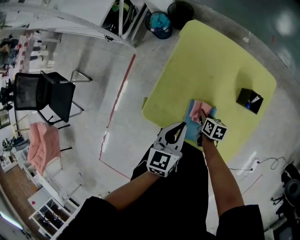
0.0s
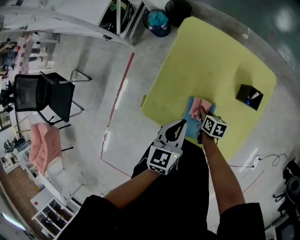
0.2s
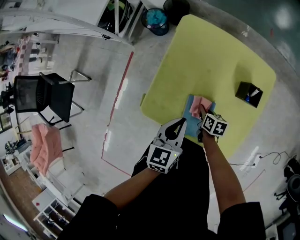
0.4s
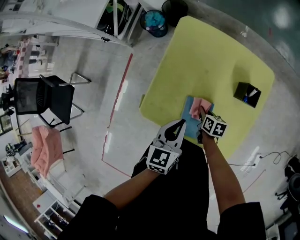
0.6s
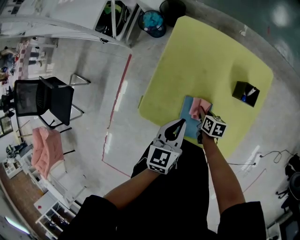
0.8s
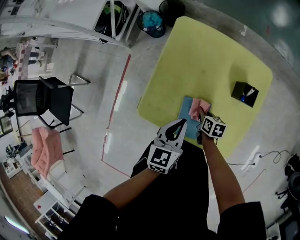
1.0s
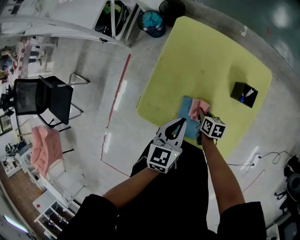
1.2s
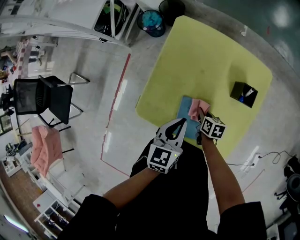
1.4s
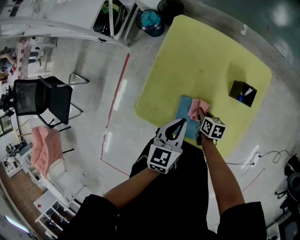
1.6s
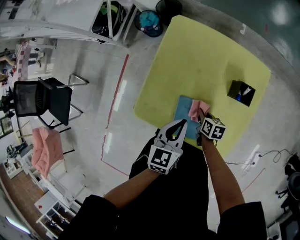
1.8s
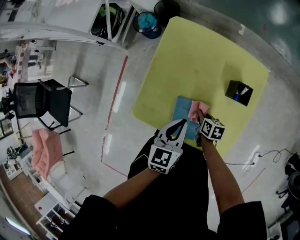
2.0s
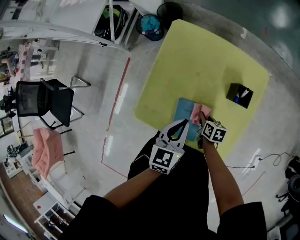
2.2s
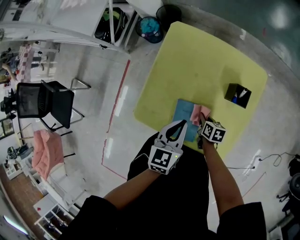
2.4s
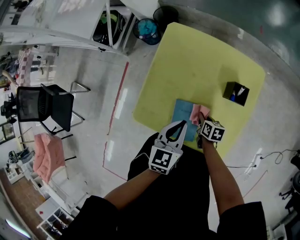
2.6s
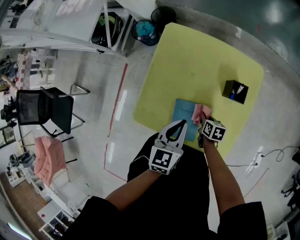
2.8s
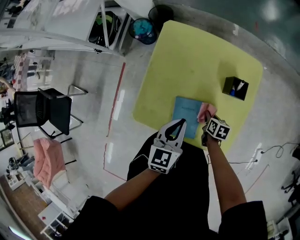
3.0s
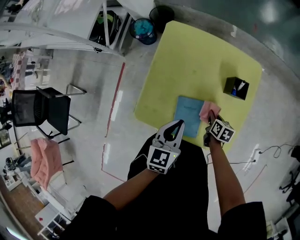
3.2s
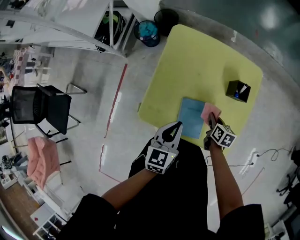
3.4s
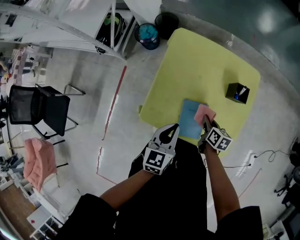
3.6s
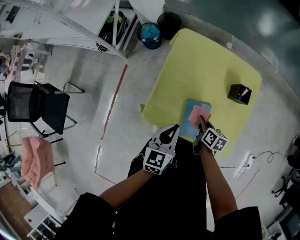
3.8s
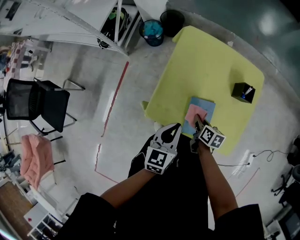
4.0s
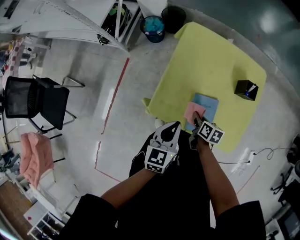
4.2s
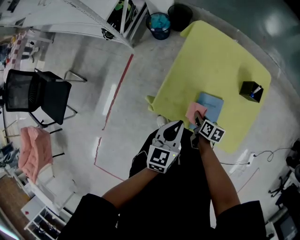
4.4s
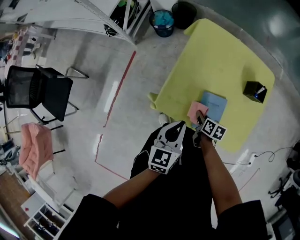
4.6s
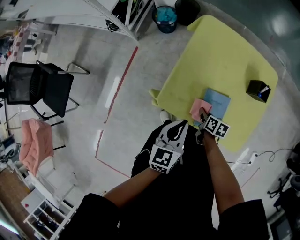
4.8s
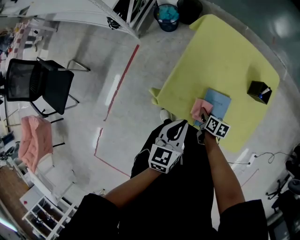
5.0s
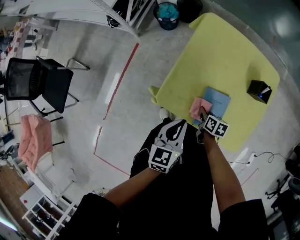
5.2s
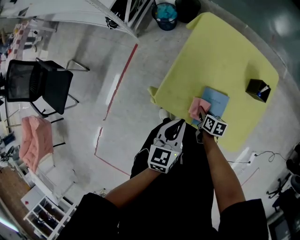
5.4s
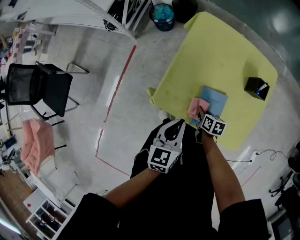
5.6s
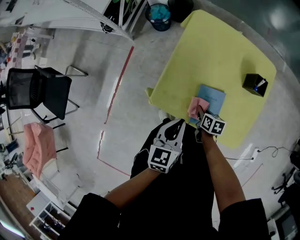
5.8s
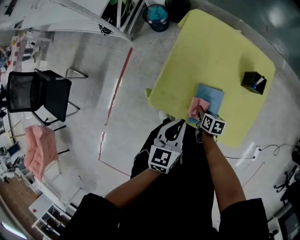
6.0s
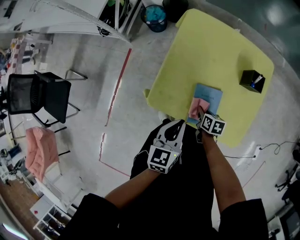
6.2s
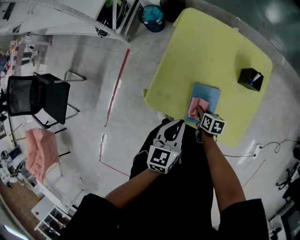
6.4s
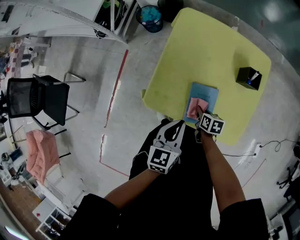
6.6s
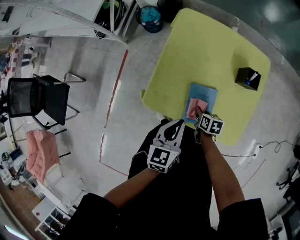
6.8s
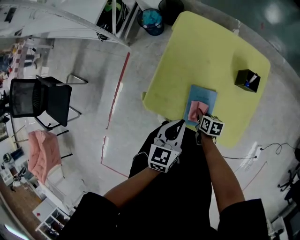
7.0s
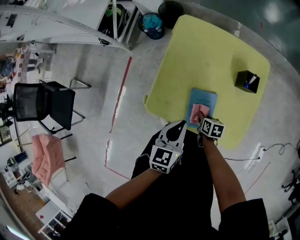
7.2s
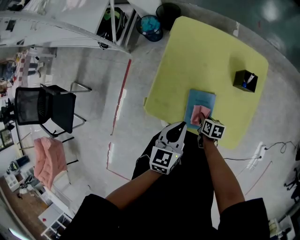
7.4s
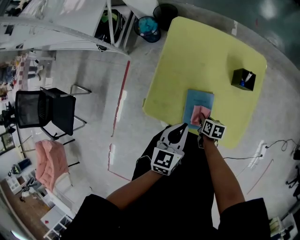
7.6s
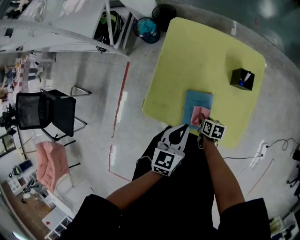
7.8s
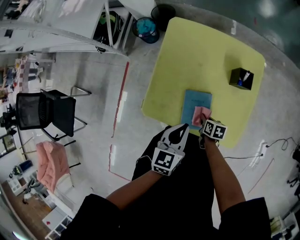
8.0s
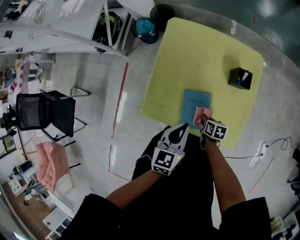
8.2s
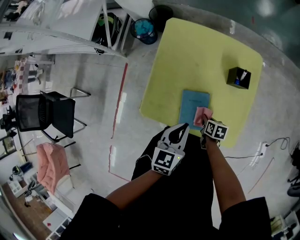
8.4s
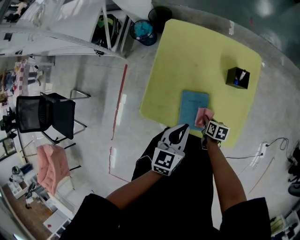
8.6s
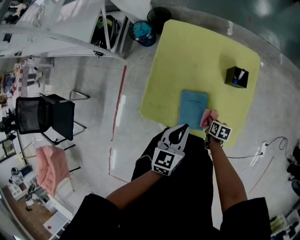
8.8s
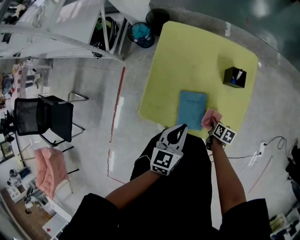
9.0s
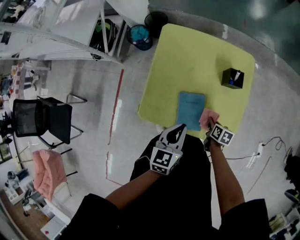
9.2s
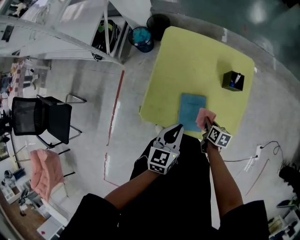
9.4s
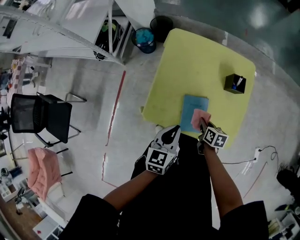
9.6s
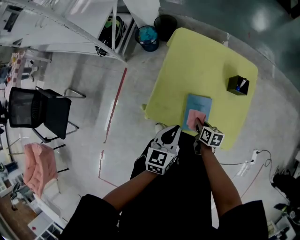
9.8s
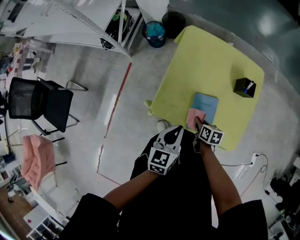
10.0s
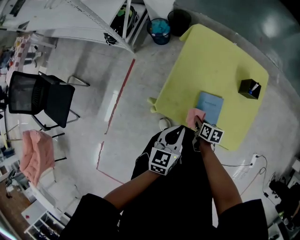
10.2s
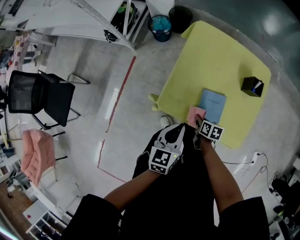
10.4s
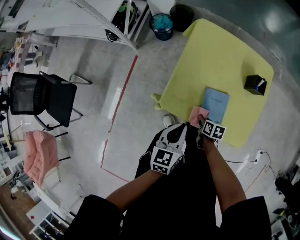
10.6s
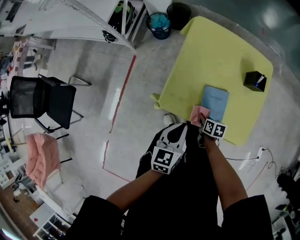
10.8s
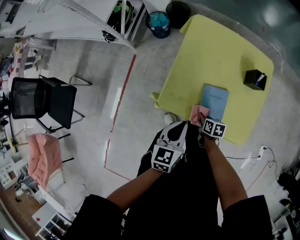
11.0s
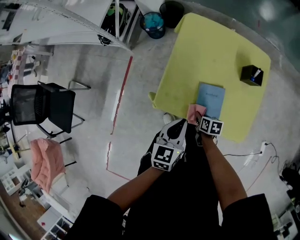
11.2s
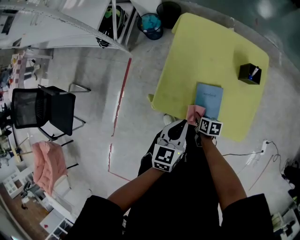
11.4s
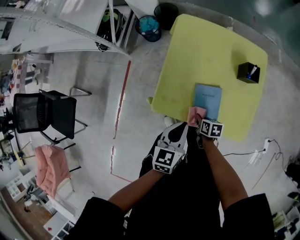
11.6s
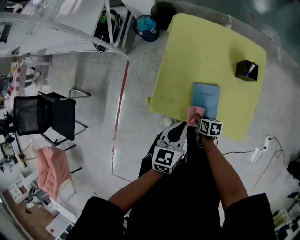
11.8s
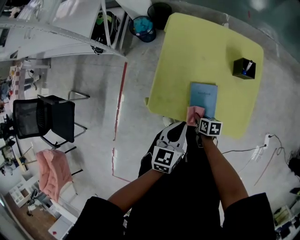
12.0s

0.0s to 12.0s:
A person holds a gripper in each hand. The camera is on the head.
0.0s to 1.6s: The left gripper moves some 5 cm.
1.6s to 3.0s: The right gripper goes approximately 10 cm to the right.
3.0s to 4.4s: The right gripper heads to the left, covering approximately 20 cm; the left gripper shifts about 15 cm to the left and backward.
4.4s to 6.0s: The right gripper changes place by roughly 5 cm.
6.0s to 7.6s: The two grippers go approximately 5 cm to the right.
7.6s to 9.0s: The right gripper travels to the right by roughly 10 cm.
9.0s to 10.4s: The left gripper heads to the left, covering roughly 15 cm, while the right gripper travels to the left by approximately 20 cm.
10.4s to 12.0s: The right gripper ends up roughly 5 cm from where it was, while the left gripper heads to the right, covering approximately 5 cm.

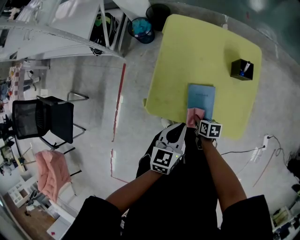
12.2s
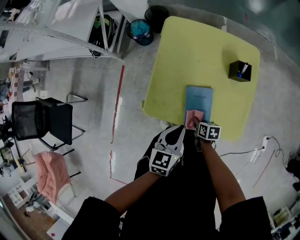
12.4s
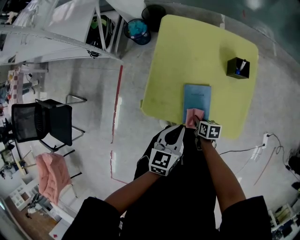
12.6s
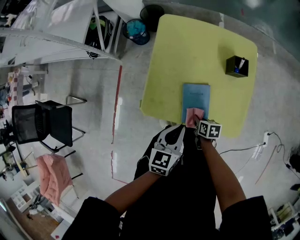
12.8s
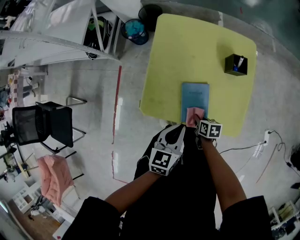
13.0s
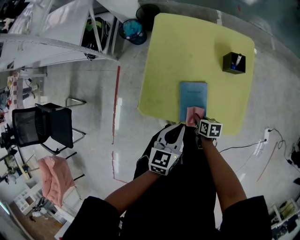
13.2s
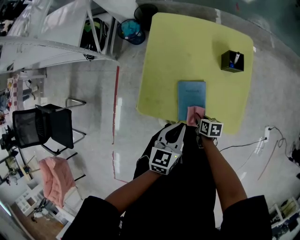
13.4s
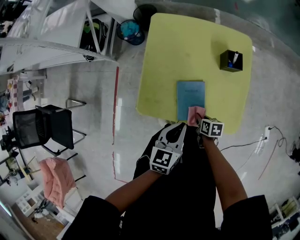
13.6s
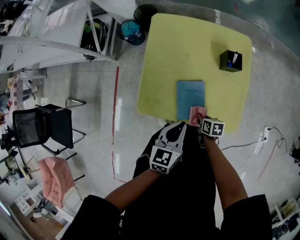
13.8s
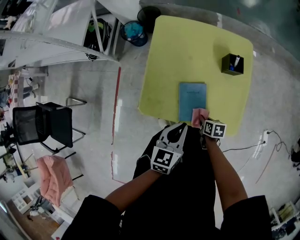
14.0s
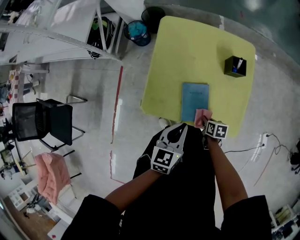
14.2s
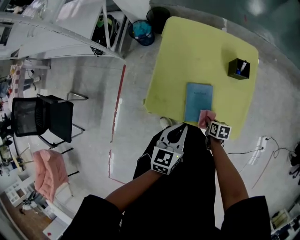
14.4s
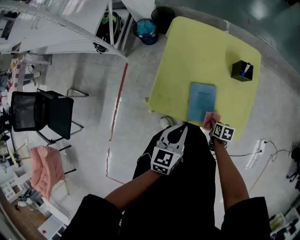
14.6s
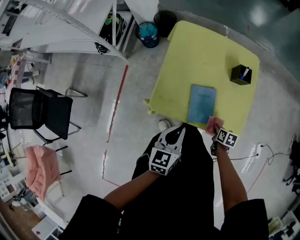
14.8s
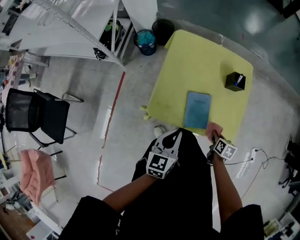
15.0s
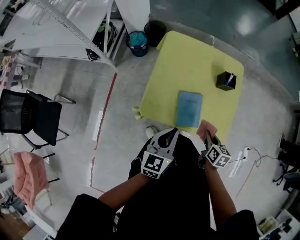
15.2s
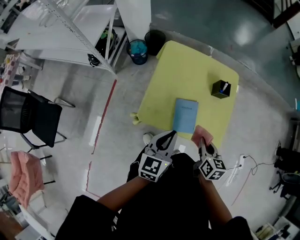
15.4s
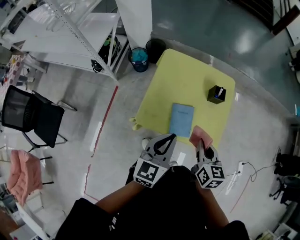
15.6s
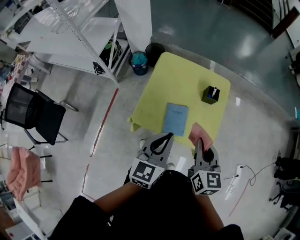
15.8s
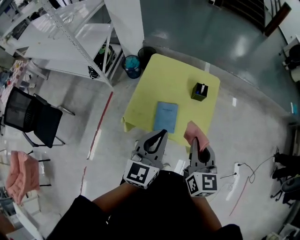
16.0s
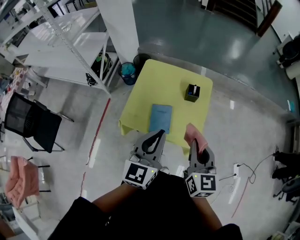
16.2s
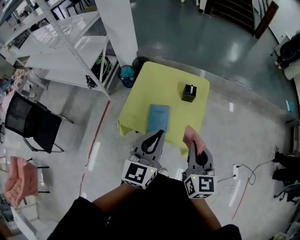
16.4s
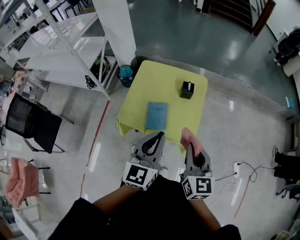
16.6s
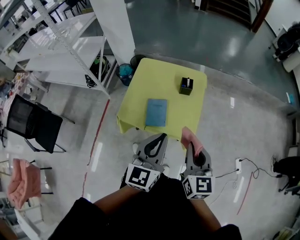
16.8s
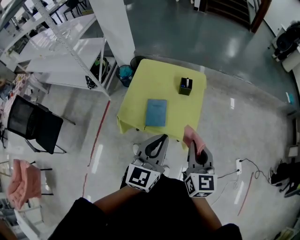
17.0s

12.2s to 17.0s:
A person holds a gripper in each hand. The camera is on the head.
12.2s to 13.8s: The two grippers go about 5 cm to the right.
13.8s to 15.4s: The left gripper travels upward and to the left by about 15 cm. The right gripper heads upward, covering some 25 cm, and changes its angle by some 30 degrees.
15.4s to 17.0s: The left gripper heads to the right, upward and backward, covering about 30 cm. The right gripper shifts roughly 35 cm upward, to the right and backward, and rotates roughly 30 degrees.

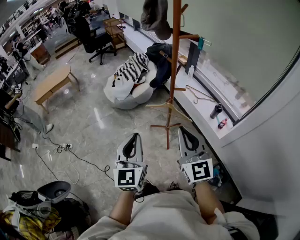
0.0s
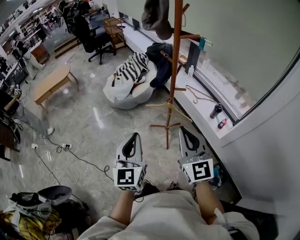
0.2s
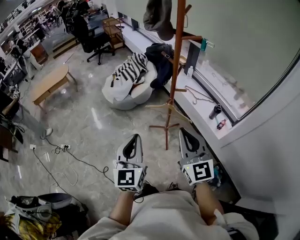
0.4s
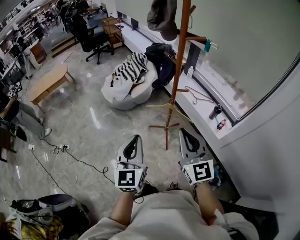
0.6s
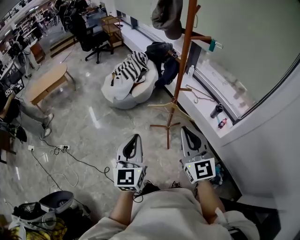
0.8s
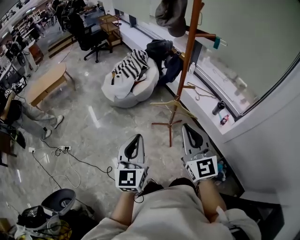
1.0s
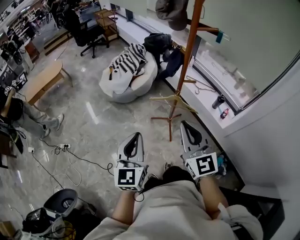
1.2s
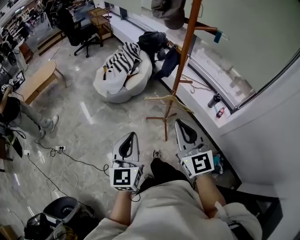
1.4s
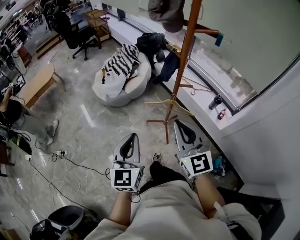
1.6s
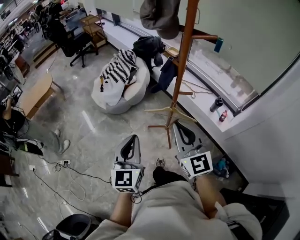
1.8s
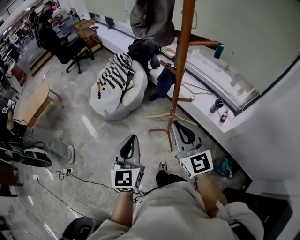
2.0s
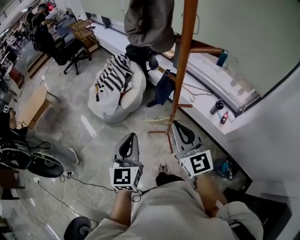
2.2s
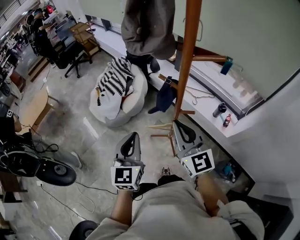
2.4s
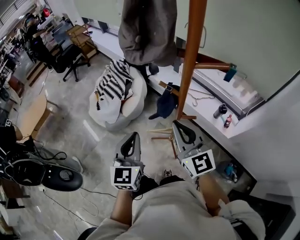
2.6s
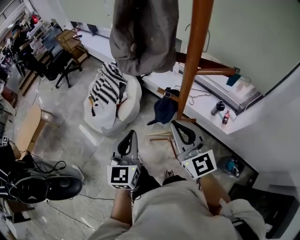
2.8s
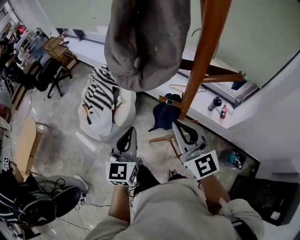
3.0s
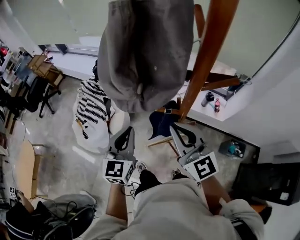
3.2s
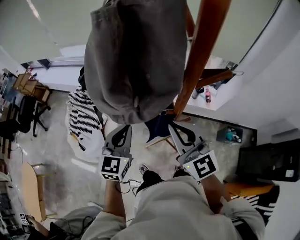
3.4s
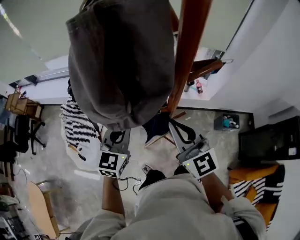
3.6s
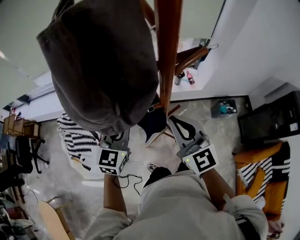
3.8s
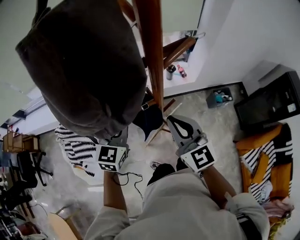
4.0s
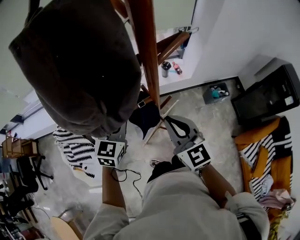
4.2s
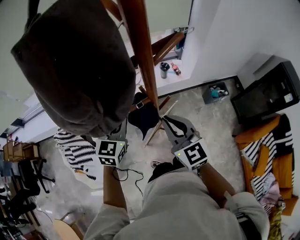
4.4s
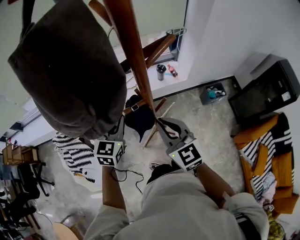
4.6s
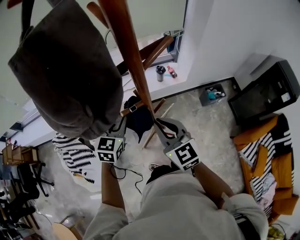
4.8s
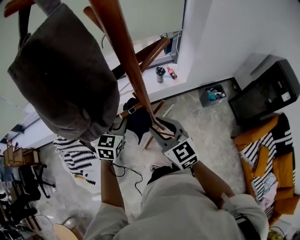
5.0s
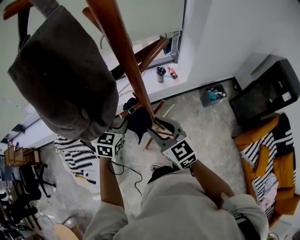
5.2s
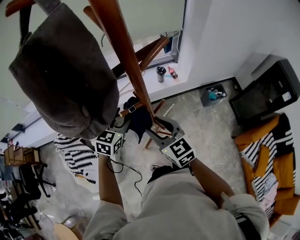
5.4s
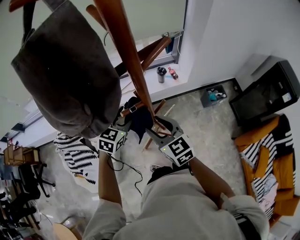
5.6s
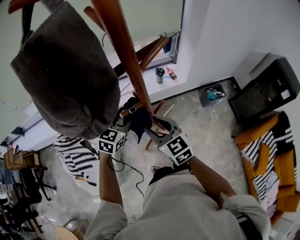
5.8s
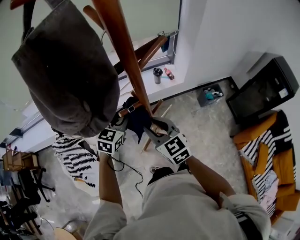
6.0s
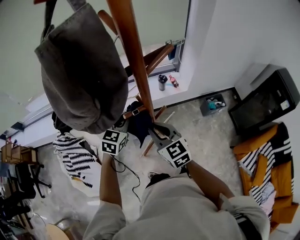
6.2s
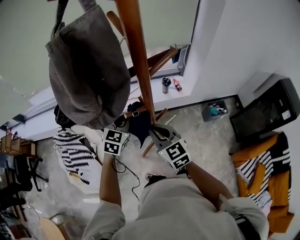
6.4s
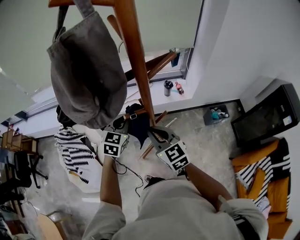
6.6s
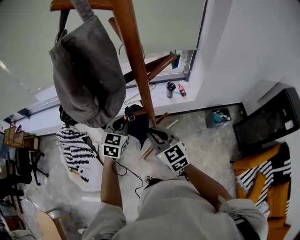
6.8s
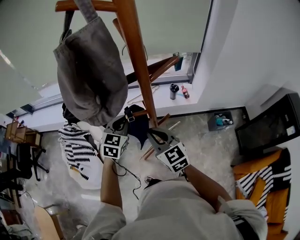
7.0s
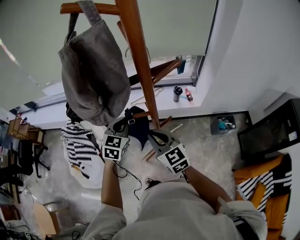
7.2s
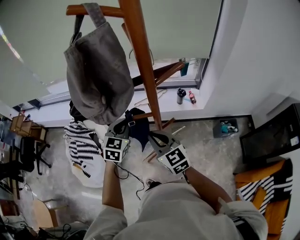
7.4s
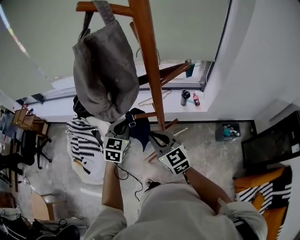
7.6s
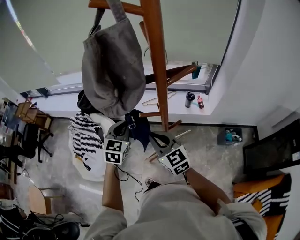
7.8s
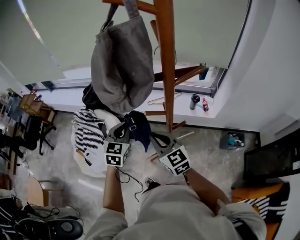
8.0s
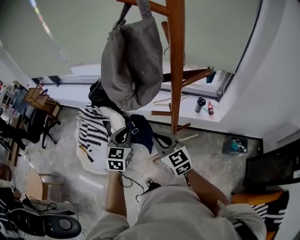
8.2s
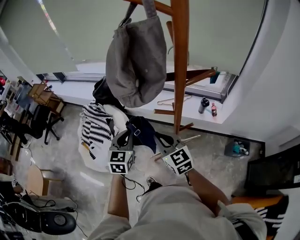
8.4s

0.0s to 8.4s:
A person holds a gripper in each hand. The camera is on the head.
0.0s to 1.4s: Both grippers move to the left, some 10 cm.
1.4s to 2.8s: Both grippers move forward, roughly 30 cm.
2.8s to 4.2s: The right gripper changes place by some 5 cm, and changes its angle by approximately 50 degrees. The left gripper shifts by some 20 cm, and turns by roughly 60 degrees.
4.2s to 5.6s: The right gripper goes roughly 5 cm downward, and opens its fingers. The left gripper moves some 5 cm, and opens.
5.6s to 7.0s: The right gripper closes up. Meanwhile the left gripper rotates roughly 20 degrees, and closes its fingers.
7.0s to 8.4s: The right gripper travels to the left by about 5 cm. The left gripper shifts some 15 cm to the left and backward, and changes its angle by about 30 degrees.
